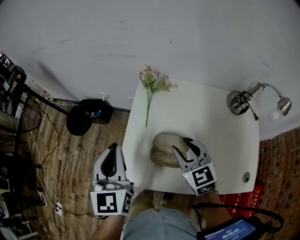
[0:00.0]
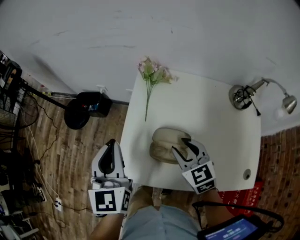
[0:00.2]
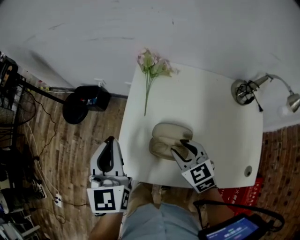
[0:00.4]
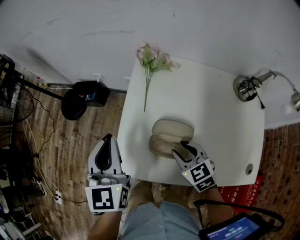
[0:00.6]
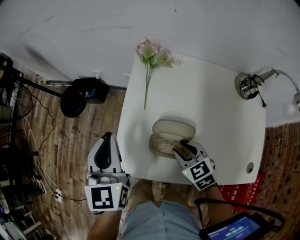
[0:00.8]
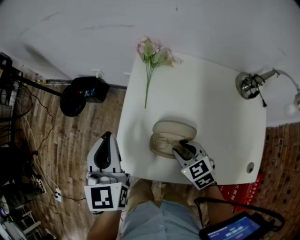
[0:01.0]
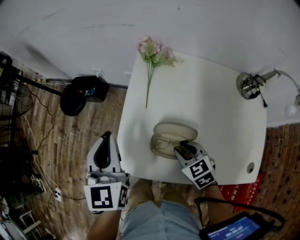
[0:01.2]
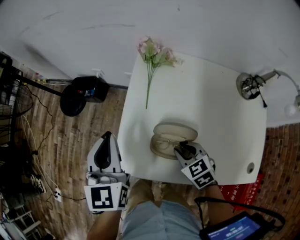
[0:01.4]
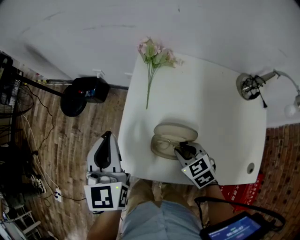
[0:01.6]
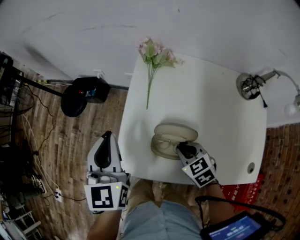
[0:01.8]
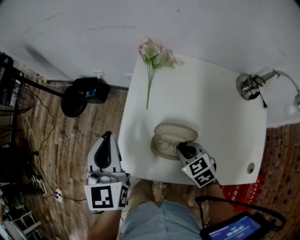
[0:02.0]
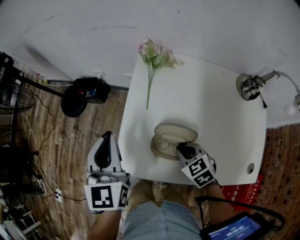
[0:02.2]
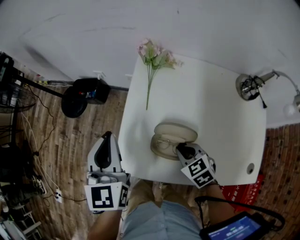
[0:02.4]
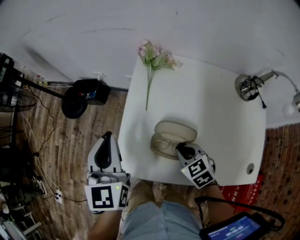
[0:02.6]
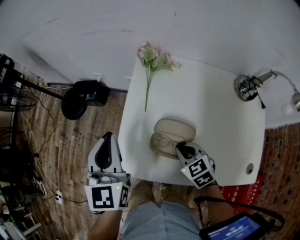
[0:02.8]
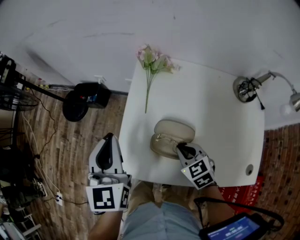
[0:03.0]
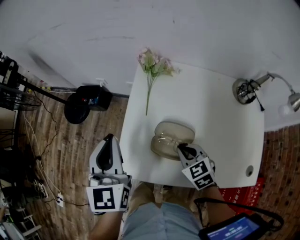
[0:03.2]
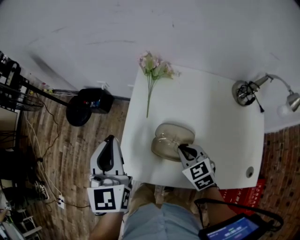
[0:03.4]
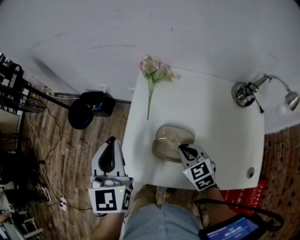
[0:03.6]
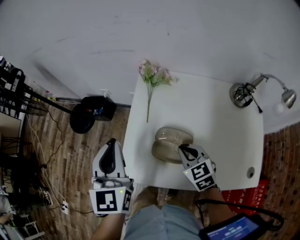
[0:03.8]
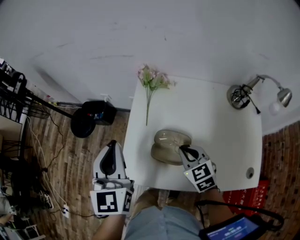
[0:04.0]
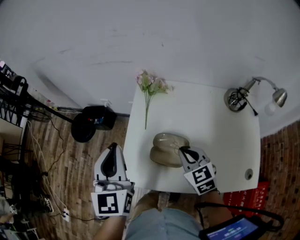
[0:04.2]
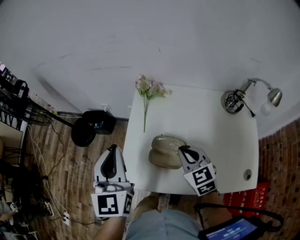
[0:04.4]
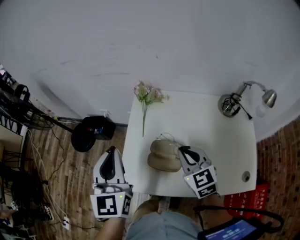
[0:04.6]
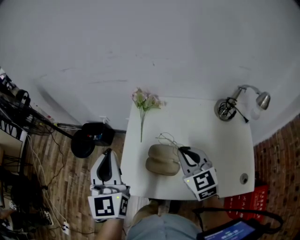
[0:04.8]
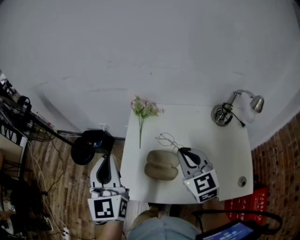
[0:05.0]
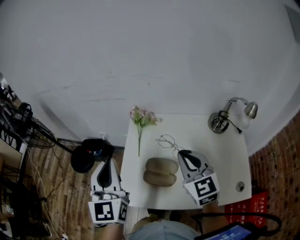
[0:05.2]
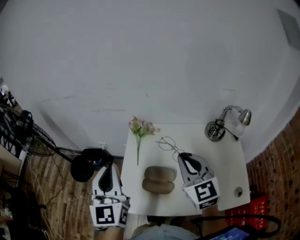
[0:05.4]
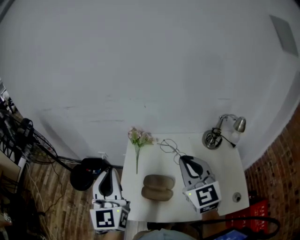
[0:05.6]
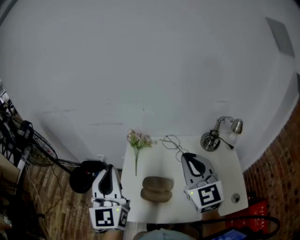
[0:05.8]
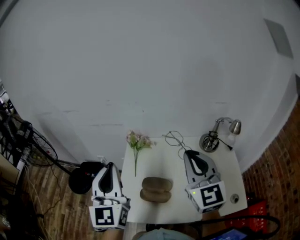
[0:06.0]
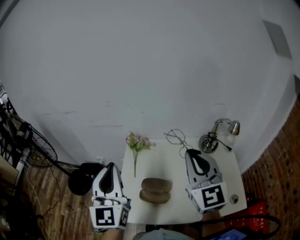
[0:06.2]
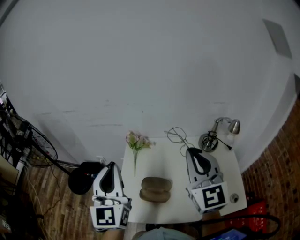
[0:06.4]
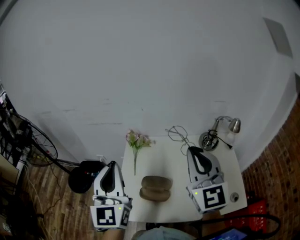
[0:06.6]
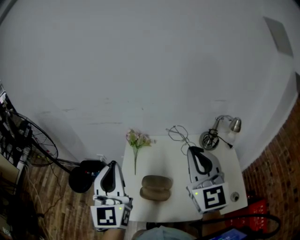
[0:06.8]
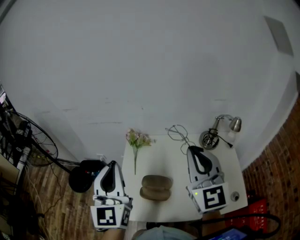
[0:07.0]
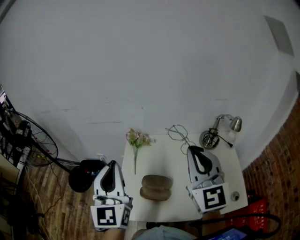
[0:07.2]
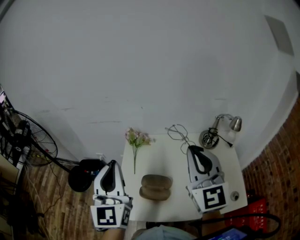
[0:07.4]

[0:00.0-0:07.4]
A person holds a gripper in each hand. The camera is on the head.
0.0 to 1.4 s: The right gripper goes approximately 15 cm downward and backward, and turns by roughly 30 degrees. The left gripper is displaced downward by about 5 cm.
1.4 to 3.0 s: The grippers move only a little.
3.0 to 4.4 s: The left gripper moves upward, roughly 5 cm; the right gripper is displaced upward by about 10 cm, and rotates roughly 20 degrees.
4.4 to 6.0 s: The right gripper is displaced upward by about 25 cm, and tips its fingers upward by approximately 30 degrees. The left gripper moves upward, some 10 cm.
6.0 to 7.4 s: The grippers stay close to where they were, moving slightly.

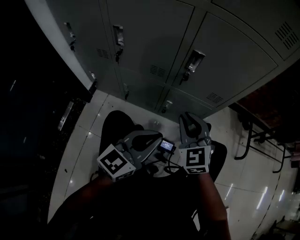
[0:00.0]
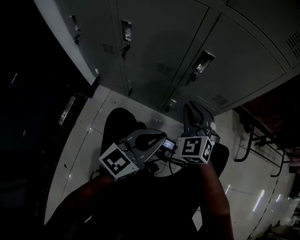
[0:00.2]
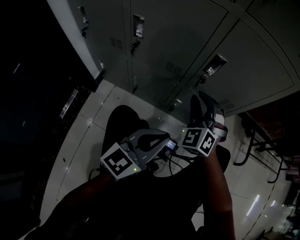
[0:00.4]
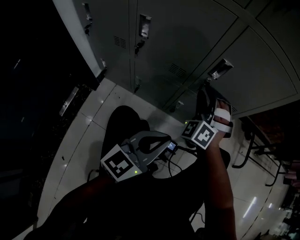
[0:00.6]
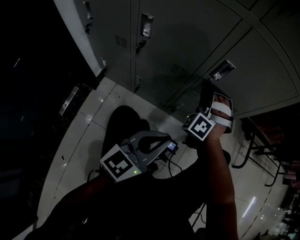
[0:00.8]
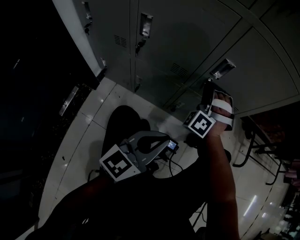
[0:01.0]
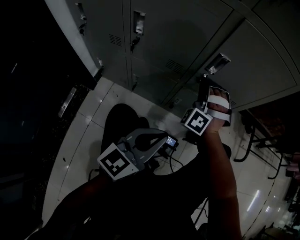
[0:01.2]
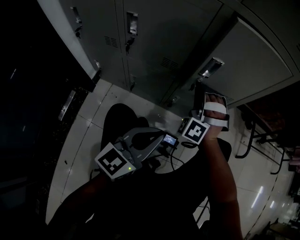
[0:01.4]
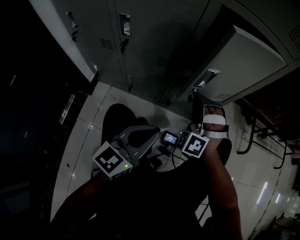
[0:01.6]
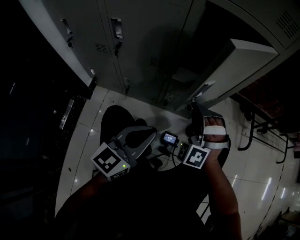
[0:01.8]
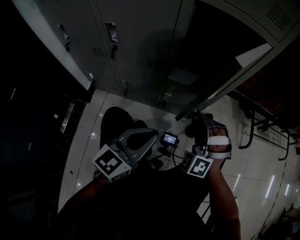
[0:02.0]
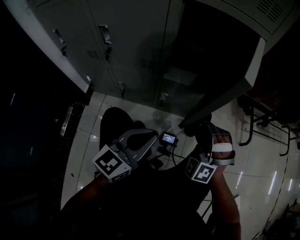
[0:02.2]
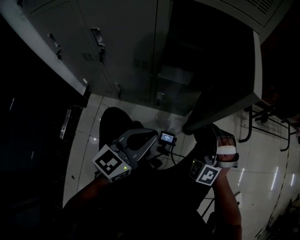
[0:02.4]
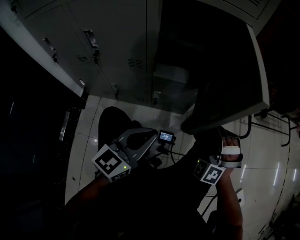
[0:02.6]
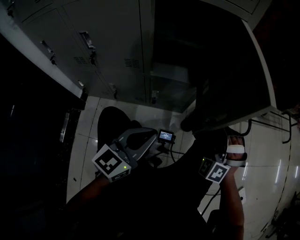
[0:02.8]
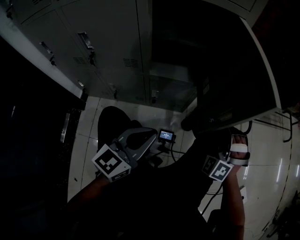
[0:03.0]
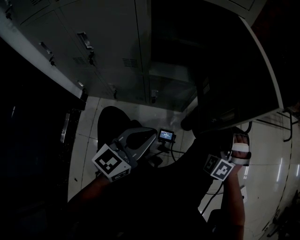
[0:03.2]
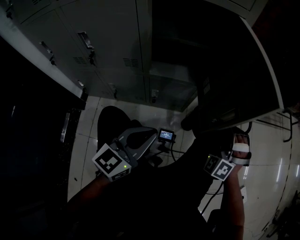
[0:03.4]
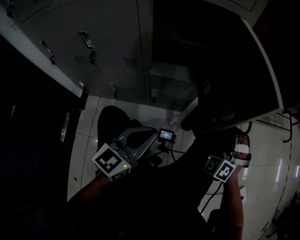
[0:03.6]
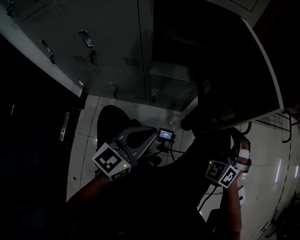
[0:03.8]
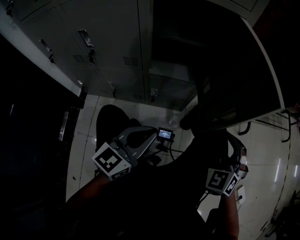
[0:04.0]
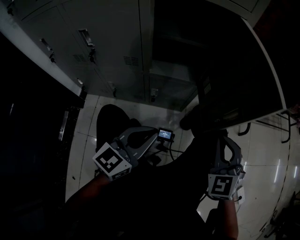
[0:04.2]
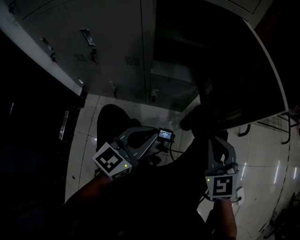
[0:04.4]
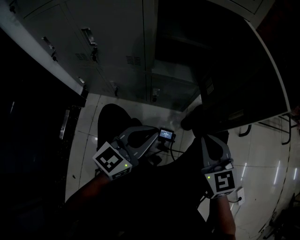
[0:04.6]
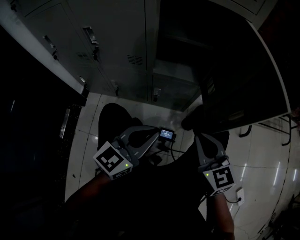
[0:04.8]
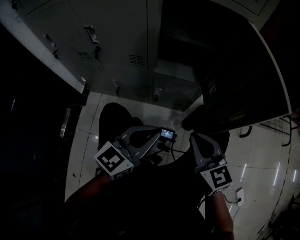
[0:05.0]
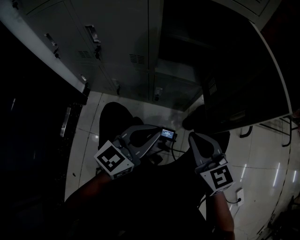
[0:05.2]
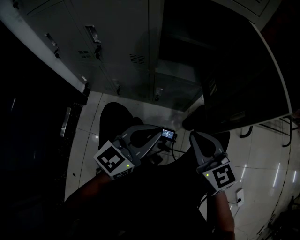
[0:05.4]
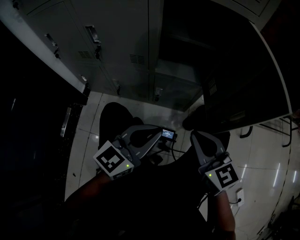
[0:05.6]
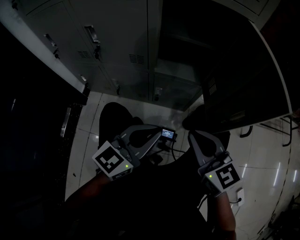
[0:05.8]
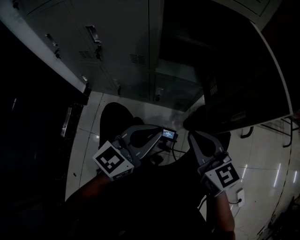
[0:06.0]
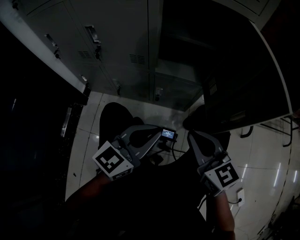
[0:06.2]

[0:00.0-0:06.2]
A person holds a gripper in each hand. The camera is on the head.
0.0 to 1.6 s: The right gripper travels forward and back again, some 15 cm each way, rolls counterclockwise, seen from behind, by roughly 50 degrees, and opens, then closes again.
1.6 to 3.2 s: The right gripper moves to the right, approximately 25 cm. Meanwhile the left gripper shifts roughly 10 cm to the right.
3.2 to 4.6 s: The right gripper is displaced backward and to the left by about 10 cm, and rotates around the line of its fingers by roughly 60 degrees, clockwise from behind.
4.6 to 6.2 s: The right gripper heads to the left, covering some 5 cm.

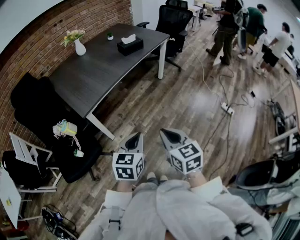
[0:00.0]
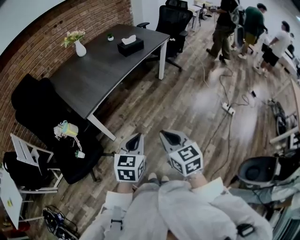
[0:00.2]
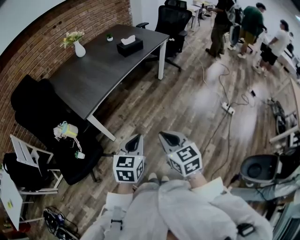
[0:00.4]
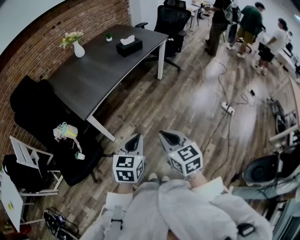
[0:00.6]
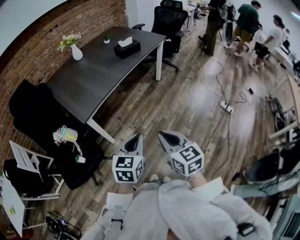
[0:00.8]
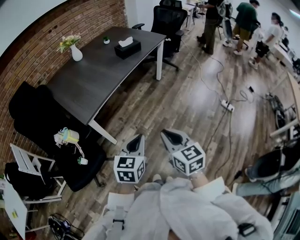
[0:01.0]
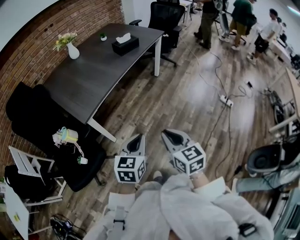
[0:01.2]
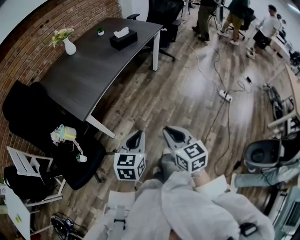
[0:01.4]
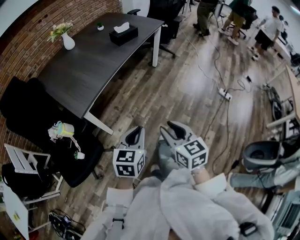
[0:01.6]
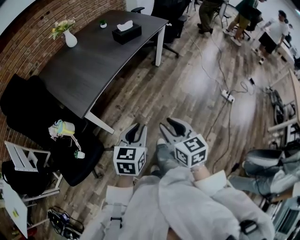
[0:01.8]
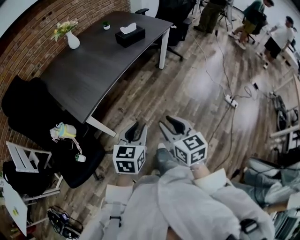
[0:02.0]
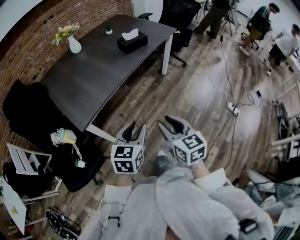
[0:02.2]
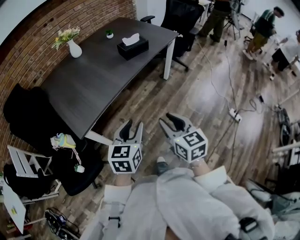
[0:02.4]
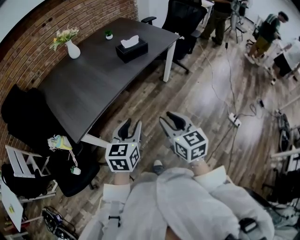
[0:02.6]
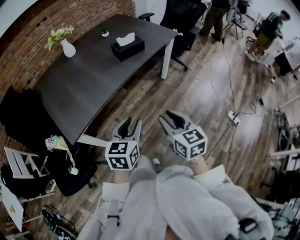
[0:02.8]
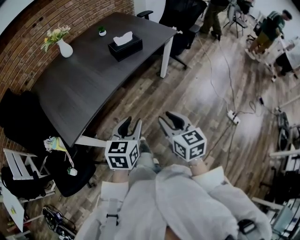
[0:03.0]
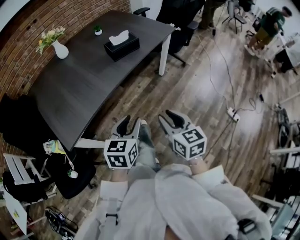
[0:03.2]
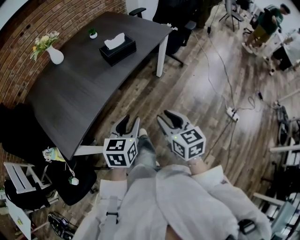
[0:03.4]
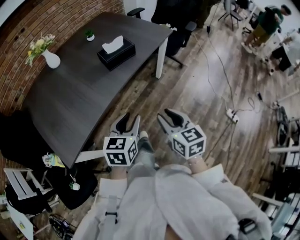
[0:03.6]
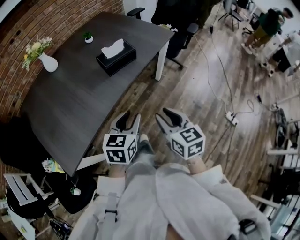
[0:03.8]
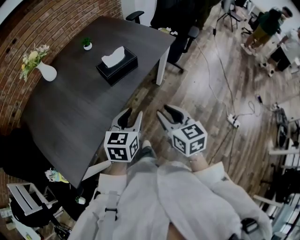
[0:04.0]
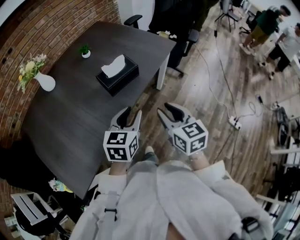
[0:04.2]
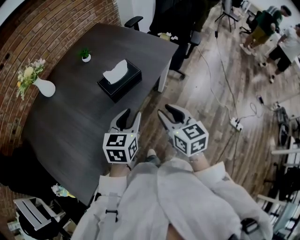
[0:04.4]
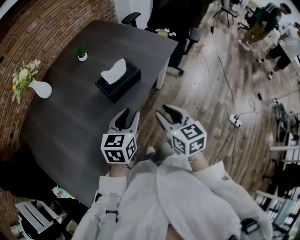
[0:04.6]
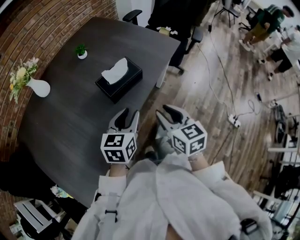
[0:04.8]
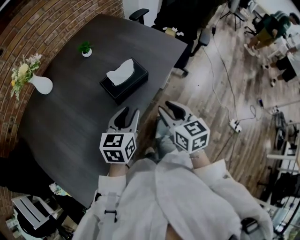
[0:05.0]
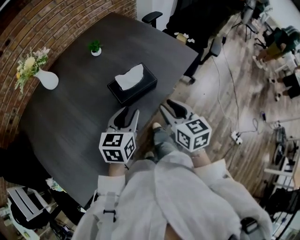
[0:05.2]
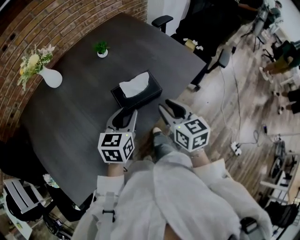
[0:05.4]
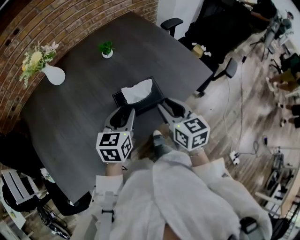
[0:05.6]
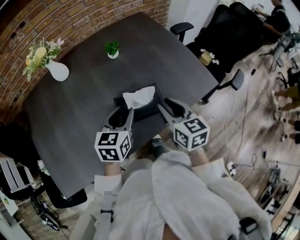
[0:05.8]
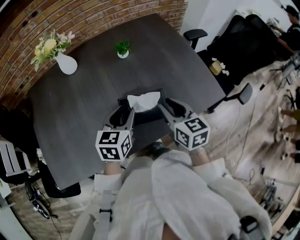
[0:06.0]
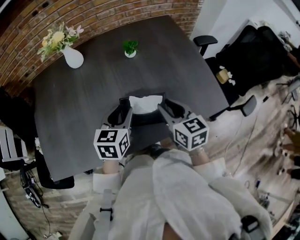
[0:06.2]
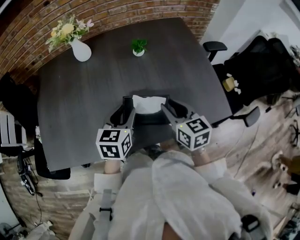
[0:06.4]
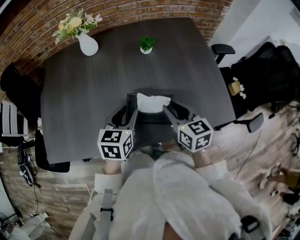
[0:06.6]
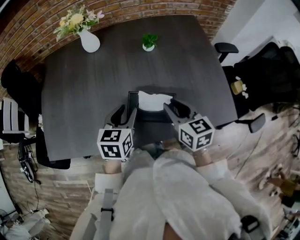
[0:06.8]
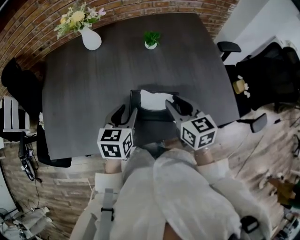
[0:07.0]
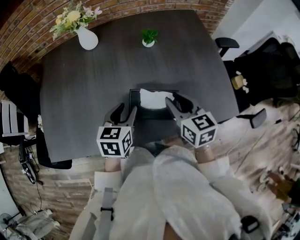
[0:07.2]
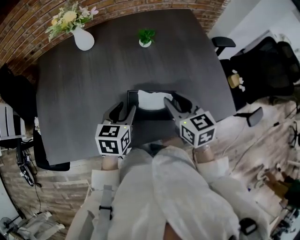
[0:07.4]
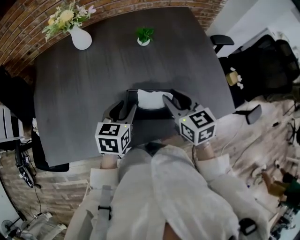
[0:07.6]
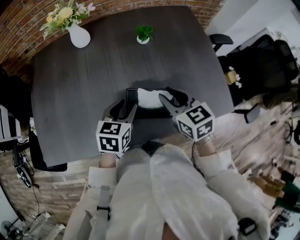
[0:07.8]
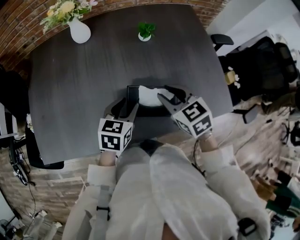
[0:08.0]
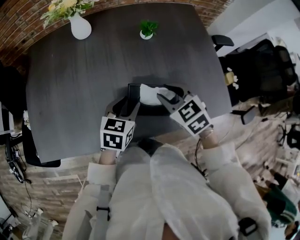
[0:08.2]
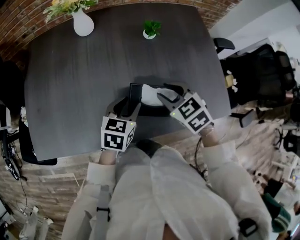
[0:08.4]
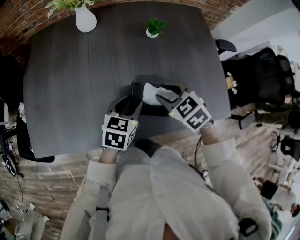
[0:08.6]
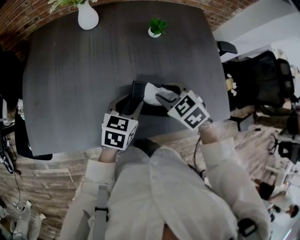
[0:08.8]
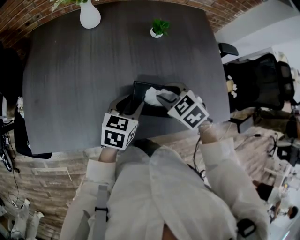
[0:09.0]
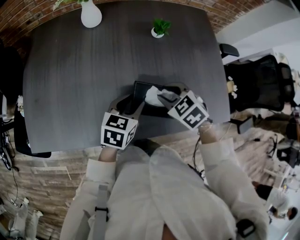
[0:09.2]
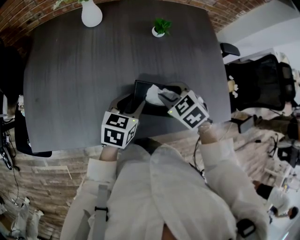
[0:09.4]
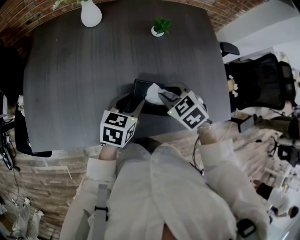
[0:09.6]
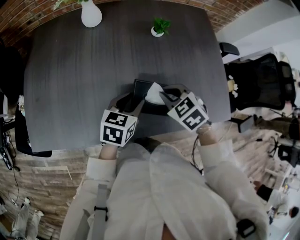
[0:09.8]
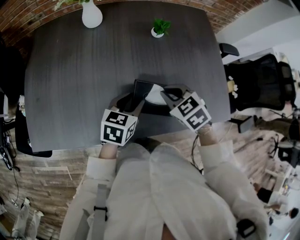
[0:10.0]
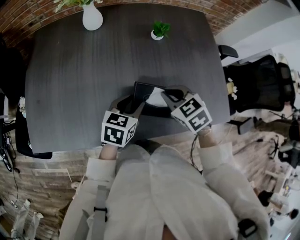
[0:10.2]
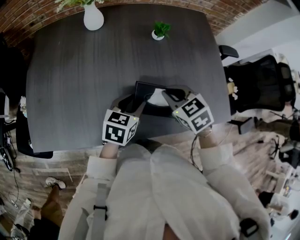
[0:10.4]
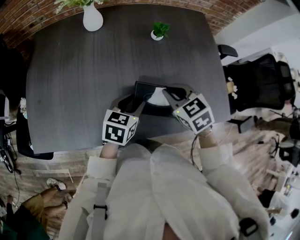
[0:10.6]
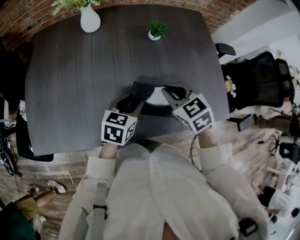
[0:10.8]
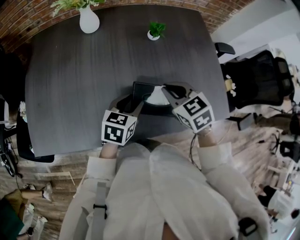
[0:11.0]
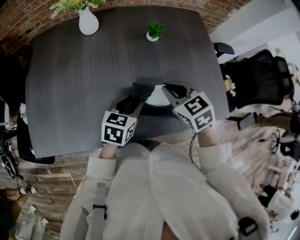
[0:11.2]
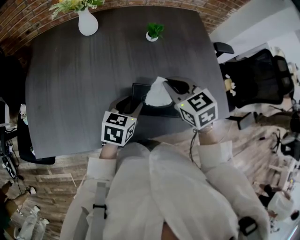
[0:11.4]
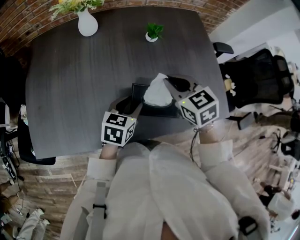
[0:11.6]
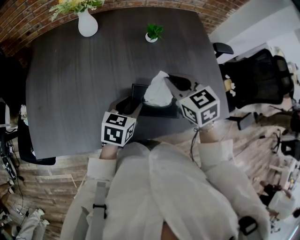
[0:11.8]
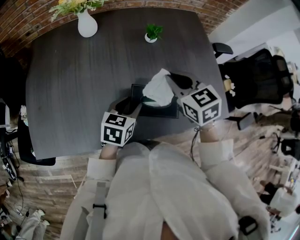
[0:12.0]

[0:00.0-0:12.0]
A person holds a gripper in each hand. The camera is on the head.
0.0 to 1.6 s: The right gripper shifts by some 5 cm, and opens up; the left gripper shifts by approximately 5 cm.
1.6 to 3.0 s: The grippers both shift forward by about 30 cm. The left gripper opens up.
3.0 to 4.4 s: Both grippers move forward, some 35 cm.
4.4 to 6.0 s: The right gripper shifts by some 30 cm, and changes its angle by about 30 degrees, while the left gripper shifts by approximately 25 cm, and rotates about 30 degrees.
6.0 to 7.6 s: The left gripper changes place by about 5 cm. The right gripper shifts about 5 cm forward.
7.6 to 9.0 s: The right gripper travels downward and to the left by some 10 cm, and swivels approximately 40 degrees.
9.0 to 10.4 s: The right gripper closes its fingers.
10.4 to 12.0 s: The right gripper is displaced upward by approximately 5 cm.
